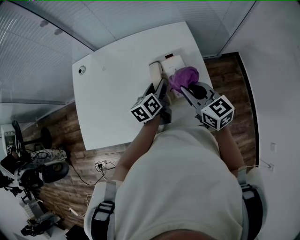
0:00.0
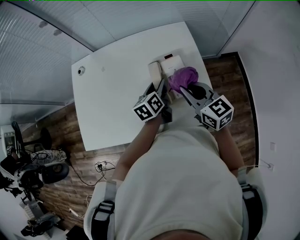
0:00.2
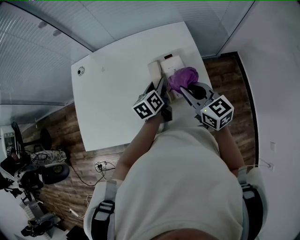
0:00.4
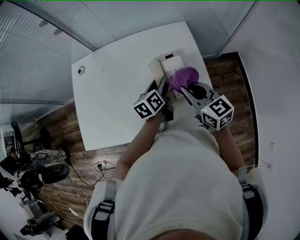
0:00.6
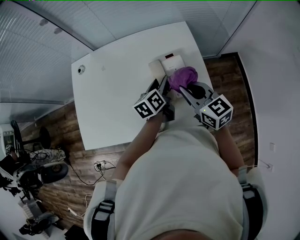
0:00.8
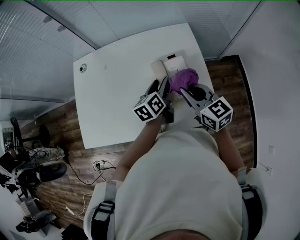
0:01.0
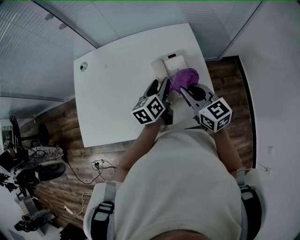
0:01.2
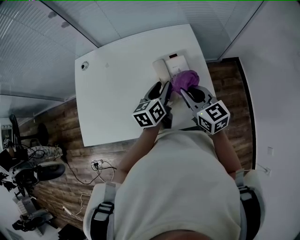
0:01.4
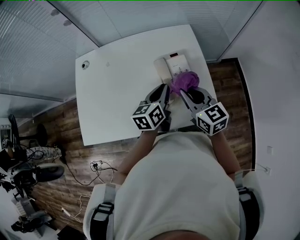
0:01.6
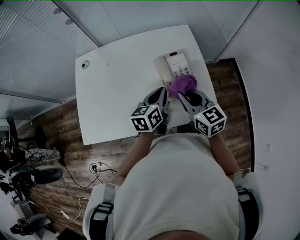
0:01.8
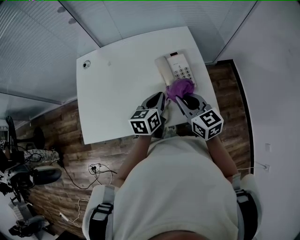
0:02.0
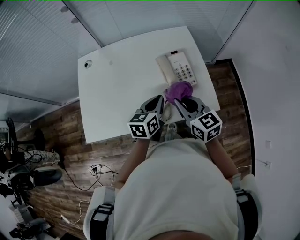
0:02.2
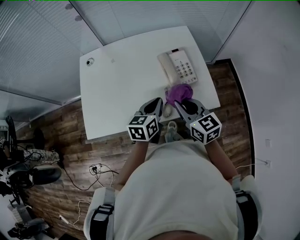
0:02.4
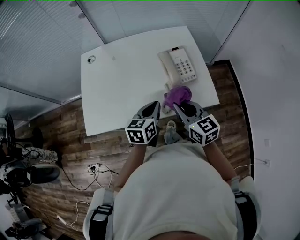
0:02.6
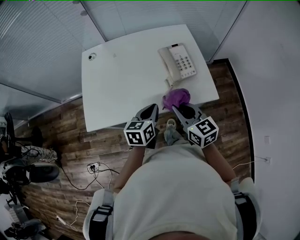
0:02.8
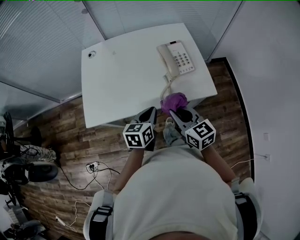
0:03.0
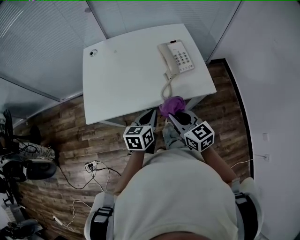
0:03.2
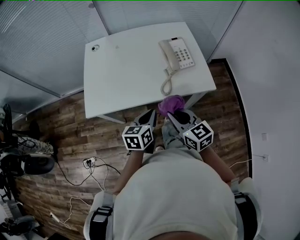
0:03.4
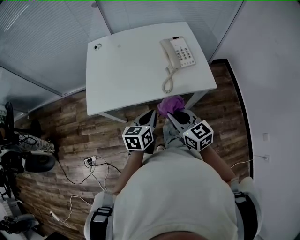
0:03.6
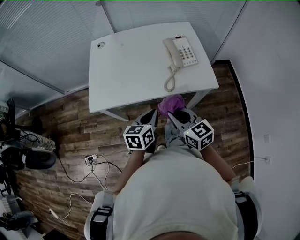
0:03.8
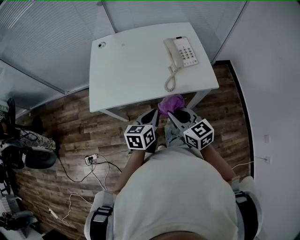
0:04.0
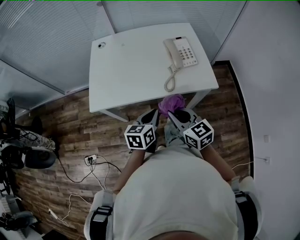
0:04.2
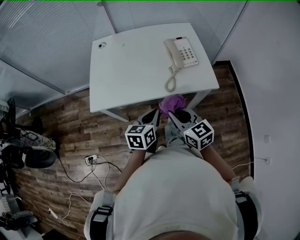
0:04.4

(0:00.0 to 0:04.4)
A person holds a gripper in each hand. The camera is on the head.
0:00.0 - 0:01.4: The grippers make only small movements.
0:01.4 - 0:03.0: Both grippers move backward and to the left, some 25 cm. The left gripper closes its fingers.
0:03.0 - 0:04.4: The two grippers go some 10 cm backward.

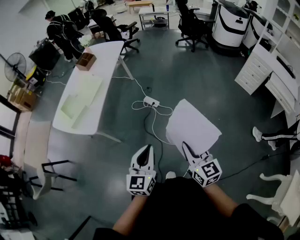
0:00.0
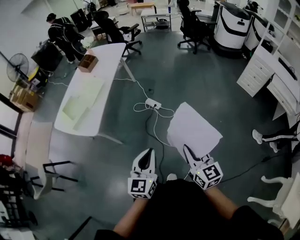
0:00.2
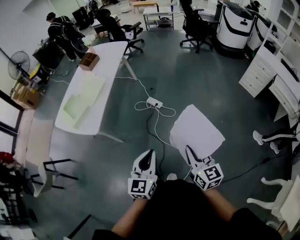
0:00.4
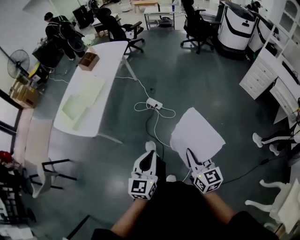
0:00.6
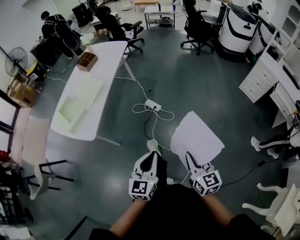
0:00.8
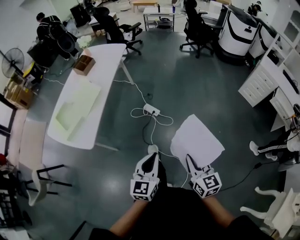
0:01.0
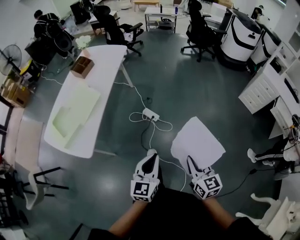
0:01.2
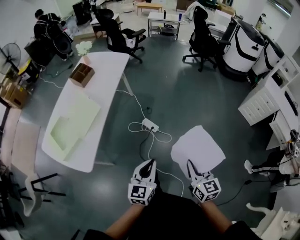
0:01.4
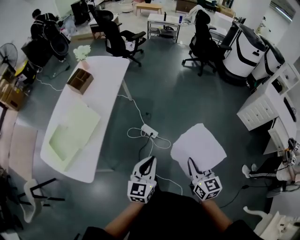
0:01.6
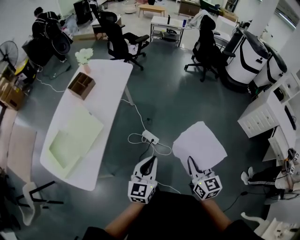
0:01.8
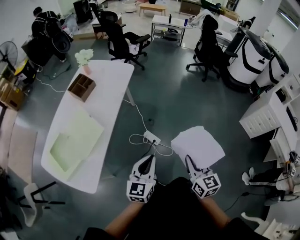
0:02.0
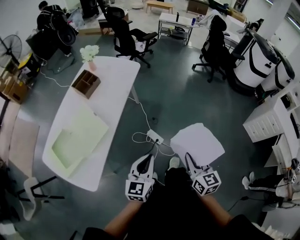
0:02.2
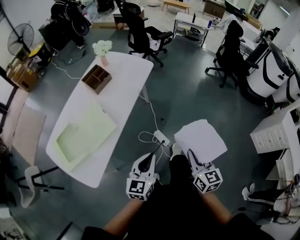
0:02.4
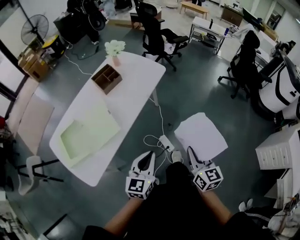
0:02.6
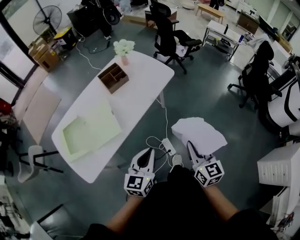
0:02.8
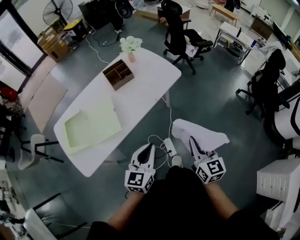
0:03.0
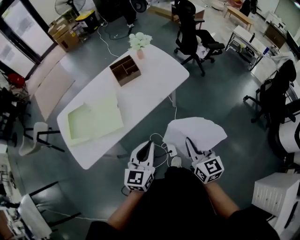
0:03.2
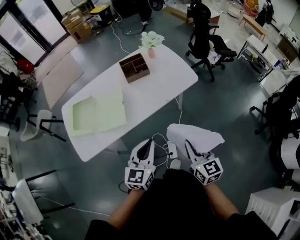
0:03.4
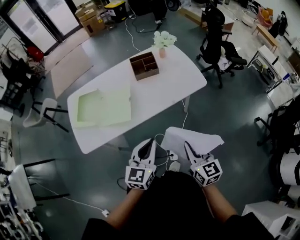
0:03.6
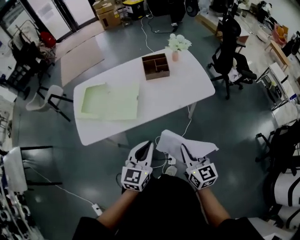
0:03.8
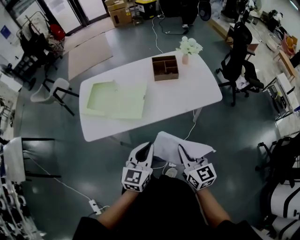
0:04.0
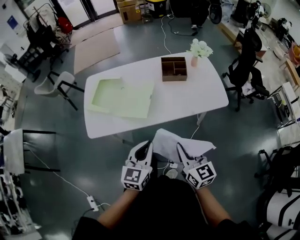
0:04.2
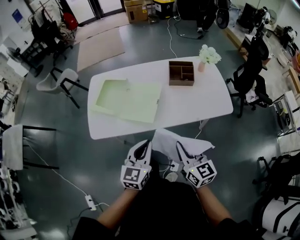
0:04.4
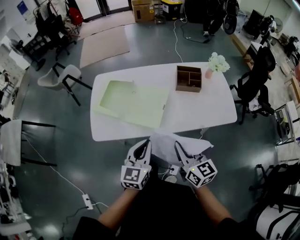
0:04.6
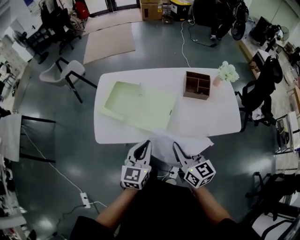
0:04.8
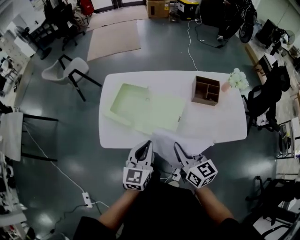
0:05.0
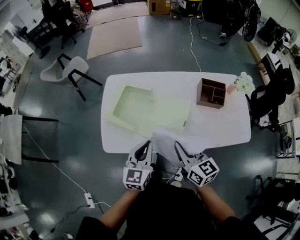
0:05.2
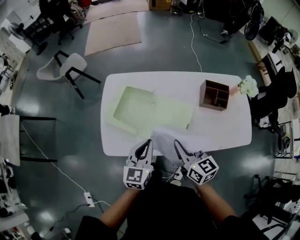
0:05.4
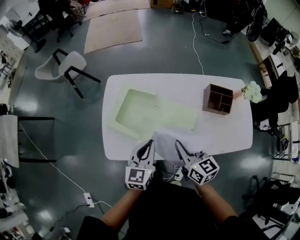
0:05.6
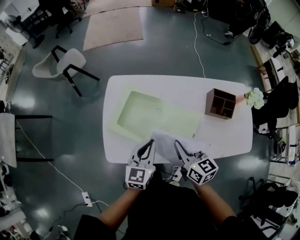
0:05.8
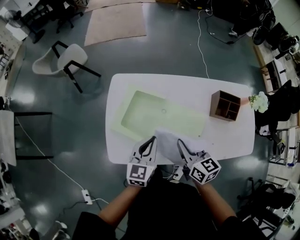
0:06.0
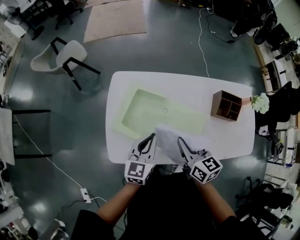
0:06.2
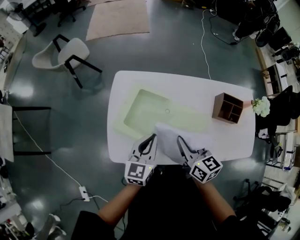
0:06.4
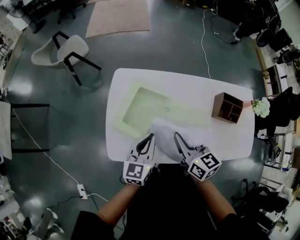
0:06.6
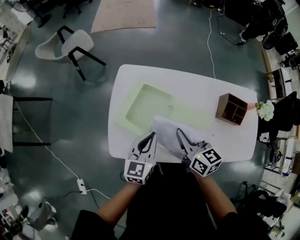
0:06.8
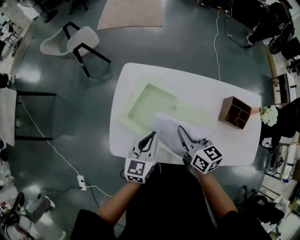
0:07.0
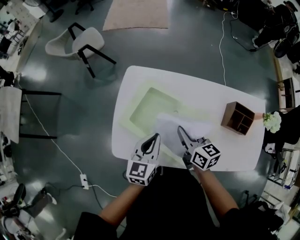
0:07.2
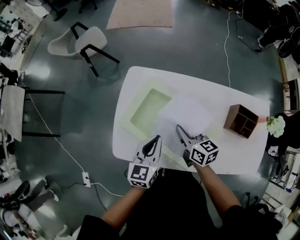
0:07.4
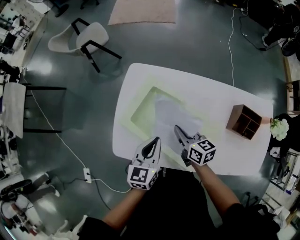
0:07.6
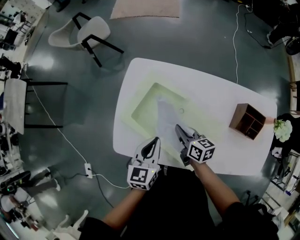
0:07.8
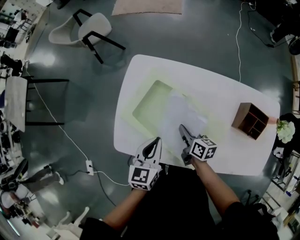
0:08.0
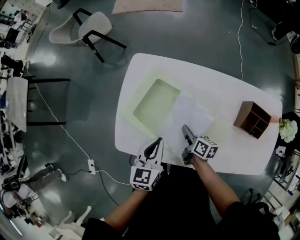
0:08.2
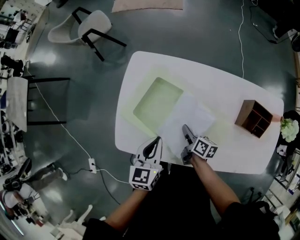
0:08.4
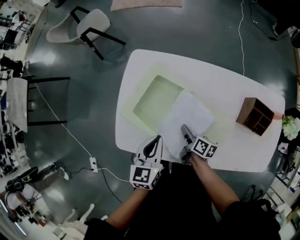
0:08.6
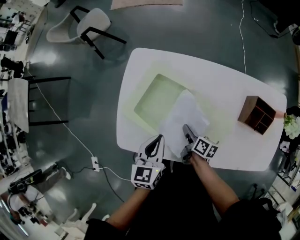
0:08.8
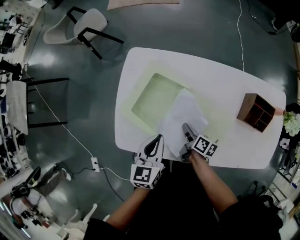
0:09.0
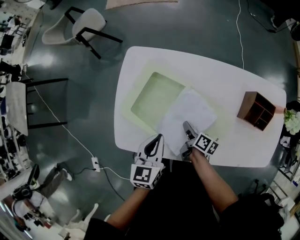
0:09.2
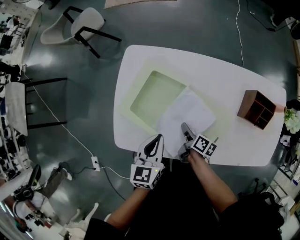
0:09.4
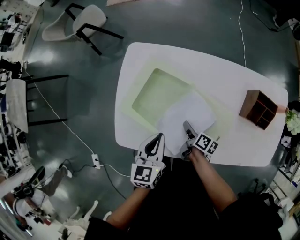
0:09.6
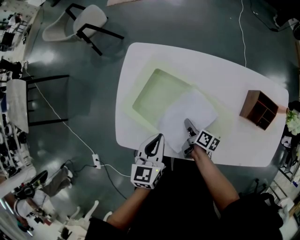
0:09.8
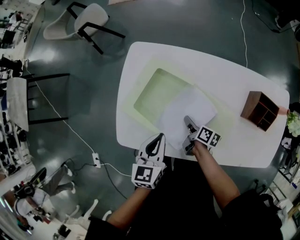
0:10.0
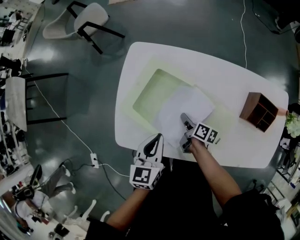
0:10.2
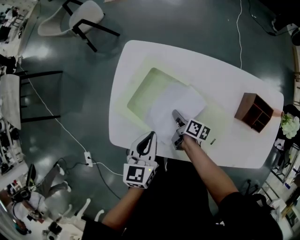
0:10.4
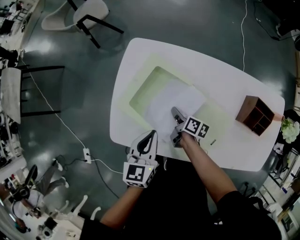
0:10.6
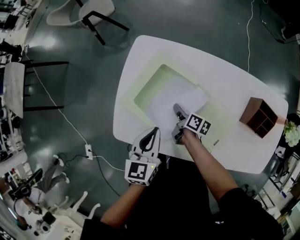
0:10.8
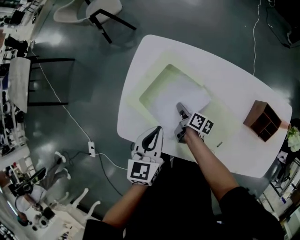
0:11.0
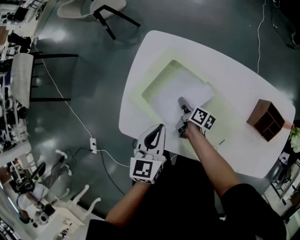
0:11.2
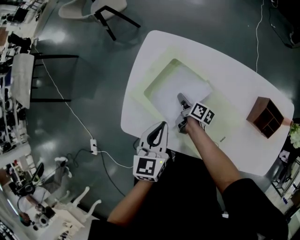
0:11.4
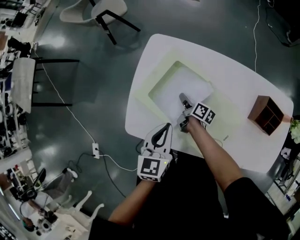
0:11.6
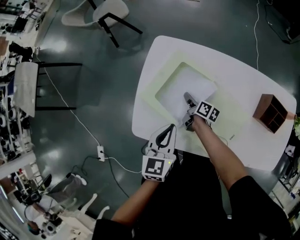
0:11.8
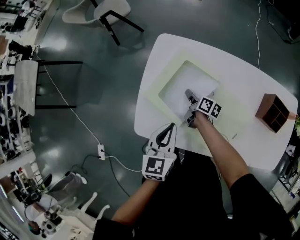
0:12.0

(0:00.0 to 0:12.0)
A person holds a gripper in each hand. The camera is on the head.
0:00.0 - 0:01.6: The grippers both shift forward by about 35 cm.
0:01.6 - 0:03.0: The left gripper shifts by about 30 cm, and swivels about 30 degrees; the right gripper ends up about 40 cm from where it was, and turns by about 30 degrees.
0:03.0 - 0:04.4: The left gripper shifts by approximately 10 cm, and swivels about 40 degrees; the right gripper changes place by some 20 cm, and rotates about 50 degrees.
0:04.4 - 0:06.0: Both grippers move forward and to the left, roughly 35 cm.
0:06.0 - 0:07.6: The right gripper moves downward and forward, roughly 15 cm.
0:07.6 - 0:09.0: The right gripper shifts approximately 15 cm downward and backward, and rotates roughly 40 degrees.
0:09.0 - 0:10.4: The right gripper ends up approximately 5 cm from where it was.
0:10.4 - 0:12.0: The right gripper moves forward and to the left, approximately 10 cm; the left gripper shifts roughly 5 cm to the left.

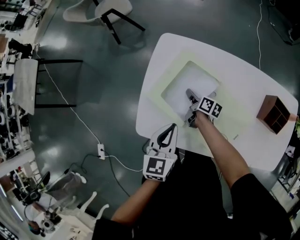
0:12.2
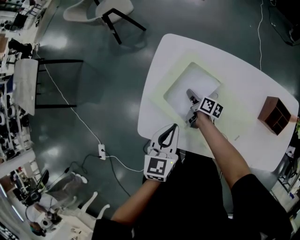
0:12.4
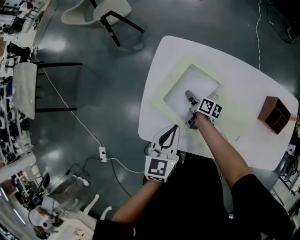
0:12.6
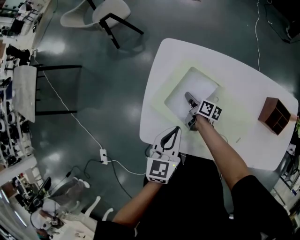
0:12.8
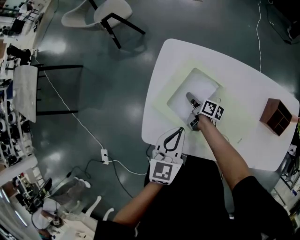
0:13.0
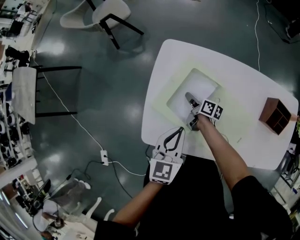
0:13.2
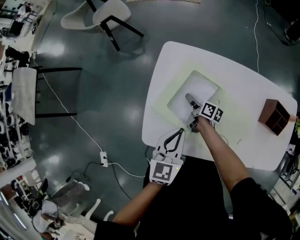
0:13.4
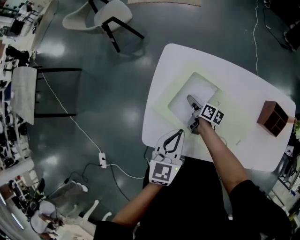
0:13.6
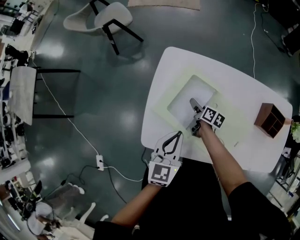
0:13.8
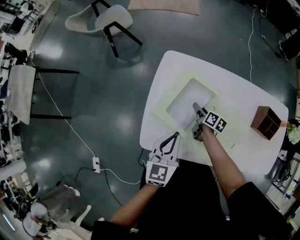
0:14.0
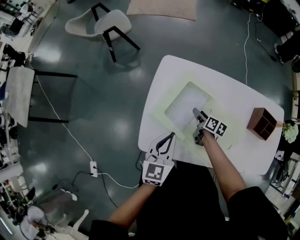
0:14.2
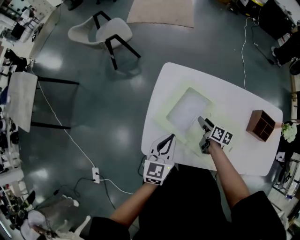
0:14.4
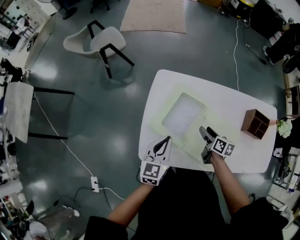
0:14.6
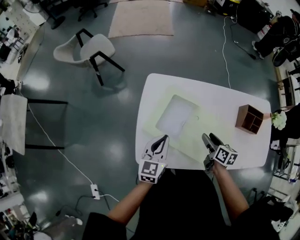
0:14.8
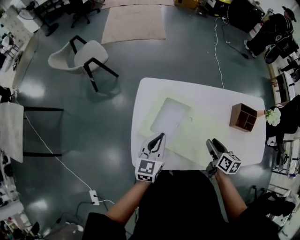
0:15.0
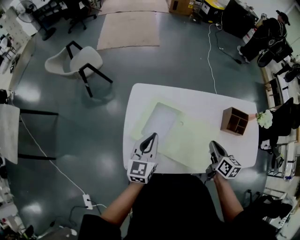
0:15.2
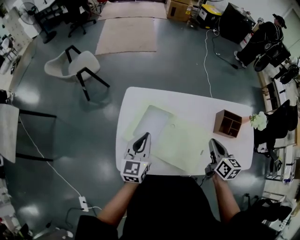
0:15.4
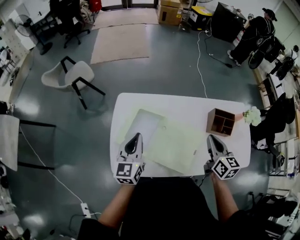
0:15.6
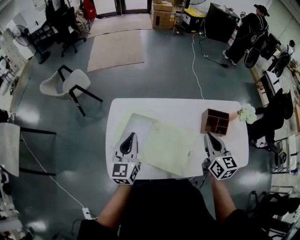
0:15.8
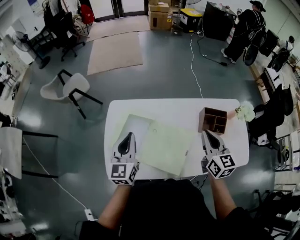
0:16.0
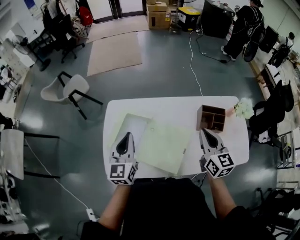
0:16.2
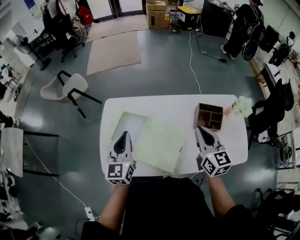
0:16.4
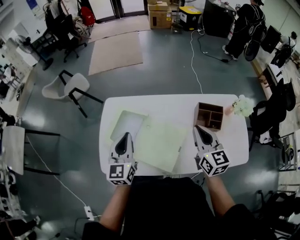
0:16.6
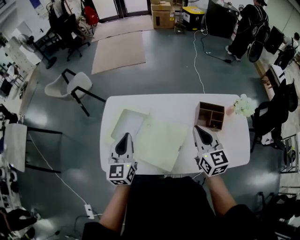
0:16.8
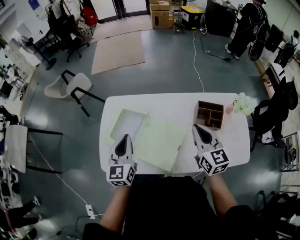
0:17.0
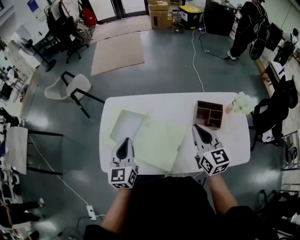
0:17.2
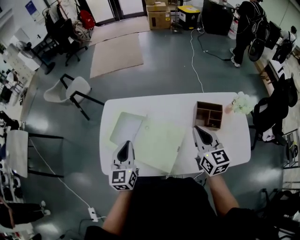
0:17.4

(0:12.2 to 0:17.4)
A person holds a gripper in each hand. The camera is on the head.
0:12.2 - 0:14.0: The right gripper opens up.
0:14.0 - 0:15.6: The left gripper shifts approximately 10 cm upward and forward; the right gripper is displaced upward and to the right by some 40 cm, swivels some 40 degrees, and closes up.
0:15.6 - 0:17.4: The right gripper moves to the right, approximately 10 cm; the left gripper moves to the right and backward, roughly 15 cm.

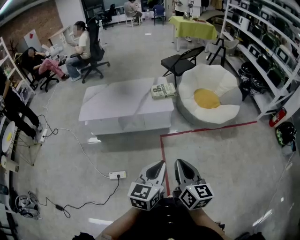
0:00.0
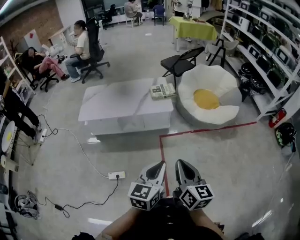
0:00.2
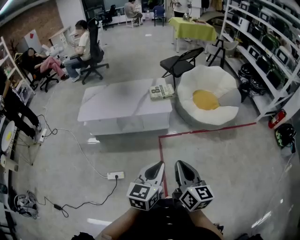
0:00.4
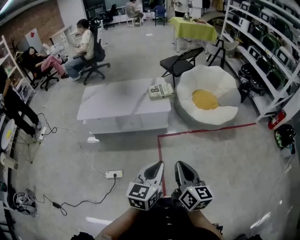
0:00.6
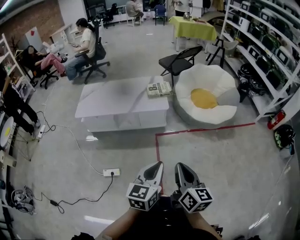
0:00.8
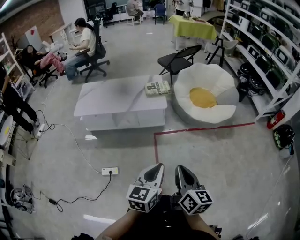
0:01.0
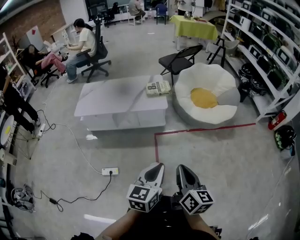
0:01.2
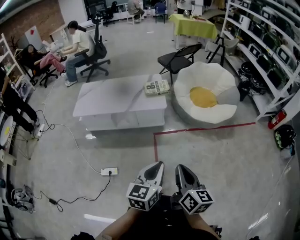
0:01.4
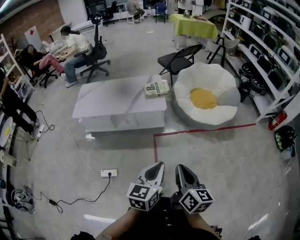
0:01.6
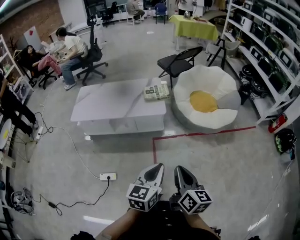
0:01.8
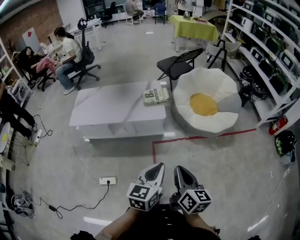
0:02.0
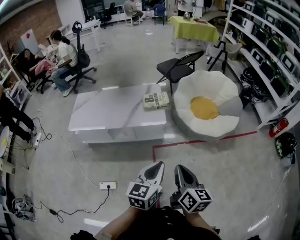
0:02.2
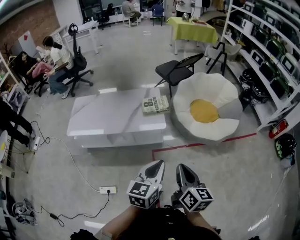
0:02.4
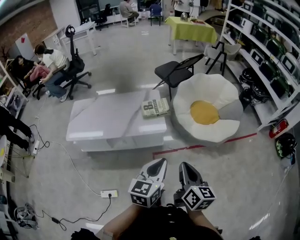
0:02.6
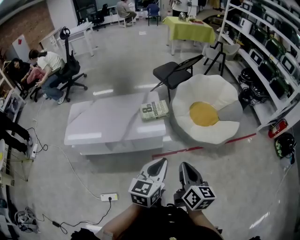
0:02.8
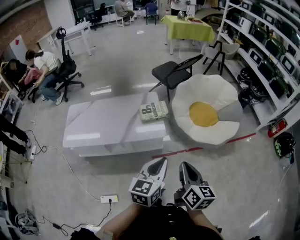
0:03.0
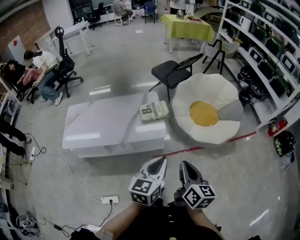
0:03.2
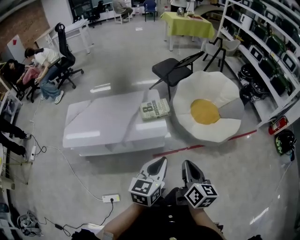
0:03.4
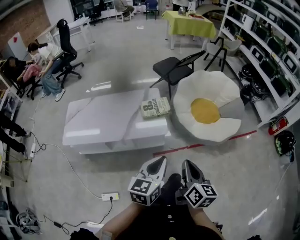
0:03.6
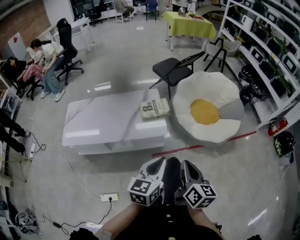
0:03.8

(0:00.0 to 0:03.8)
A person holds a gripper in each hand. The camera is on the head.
0:00.0 - 0:01.2: Both grippers move to the right, about 10 cm.
0:01.2 - 0:02.6: Both grippers move forward, some 25 cm.
0:02.6 - 0:03.8: Both grippers travel together forward, approximately 5 cm.
